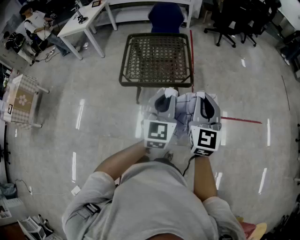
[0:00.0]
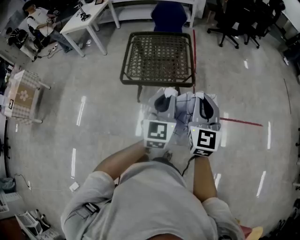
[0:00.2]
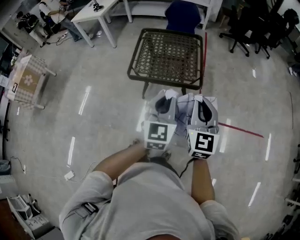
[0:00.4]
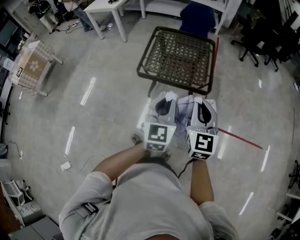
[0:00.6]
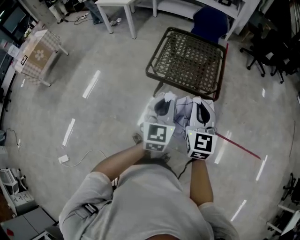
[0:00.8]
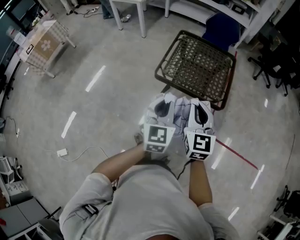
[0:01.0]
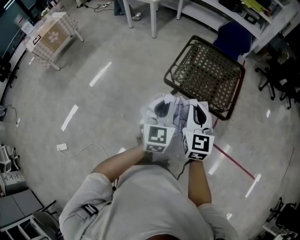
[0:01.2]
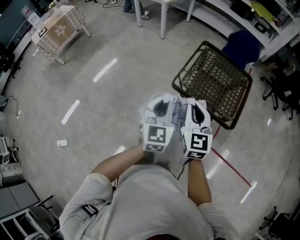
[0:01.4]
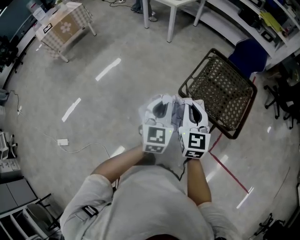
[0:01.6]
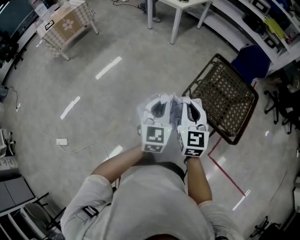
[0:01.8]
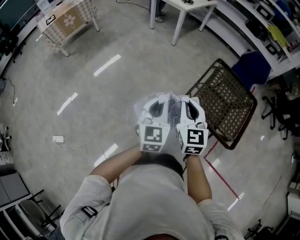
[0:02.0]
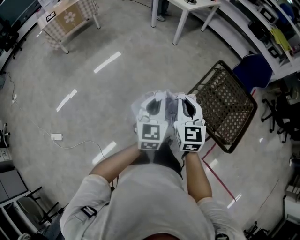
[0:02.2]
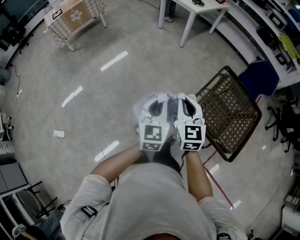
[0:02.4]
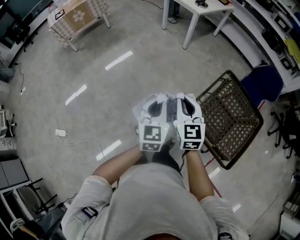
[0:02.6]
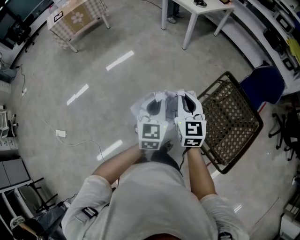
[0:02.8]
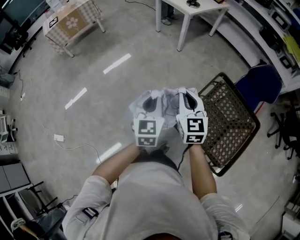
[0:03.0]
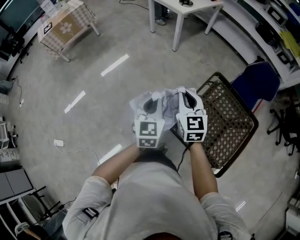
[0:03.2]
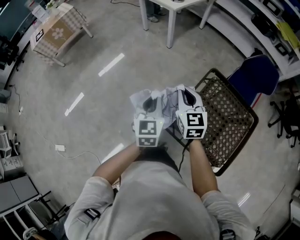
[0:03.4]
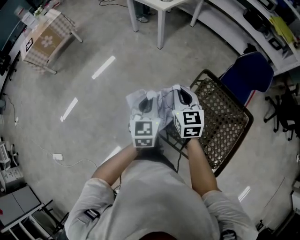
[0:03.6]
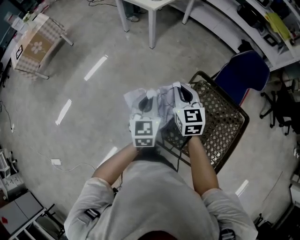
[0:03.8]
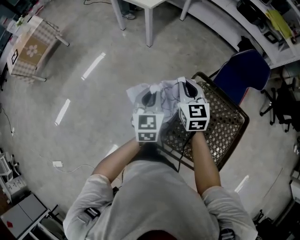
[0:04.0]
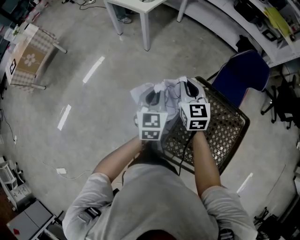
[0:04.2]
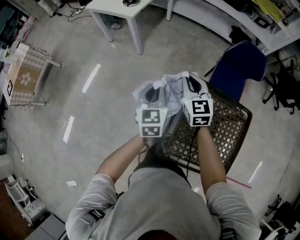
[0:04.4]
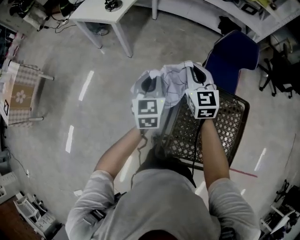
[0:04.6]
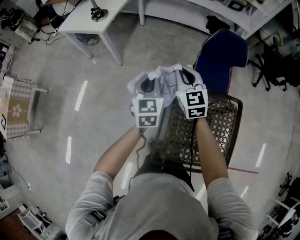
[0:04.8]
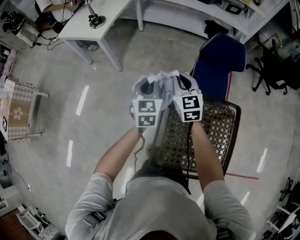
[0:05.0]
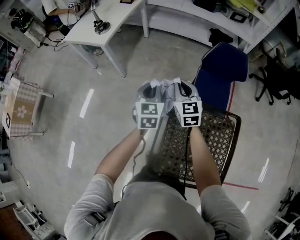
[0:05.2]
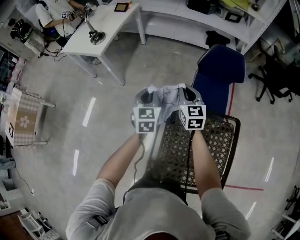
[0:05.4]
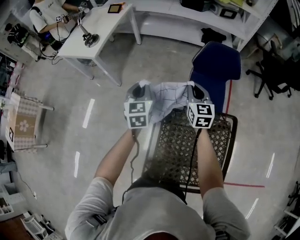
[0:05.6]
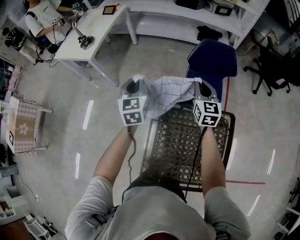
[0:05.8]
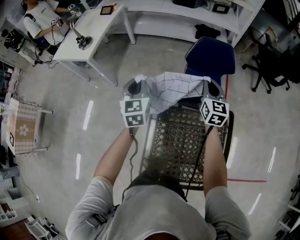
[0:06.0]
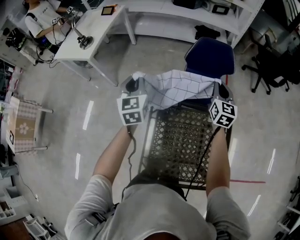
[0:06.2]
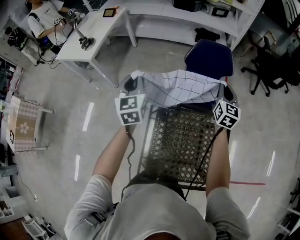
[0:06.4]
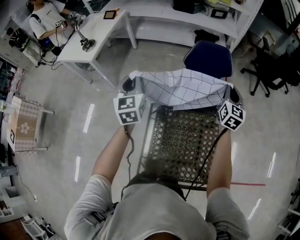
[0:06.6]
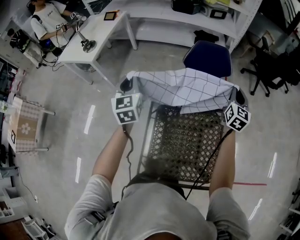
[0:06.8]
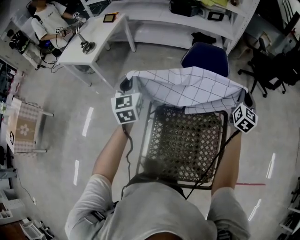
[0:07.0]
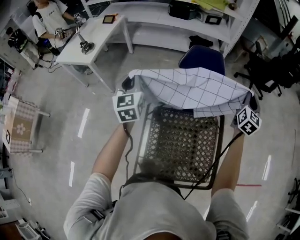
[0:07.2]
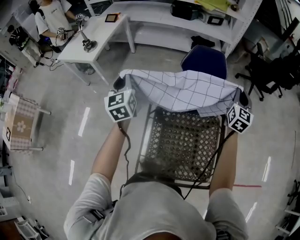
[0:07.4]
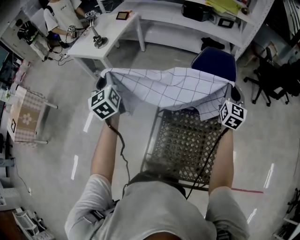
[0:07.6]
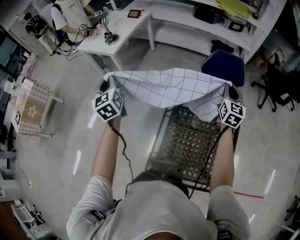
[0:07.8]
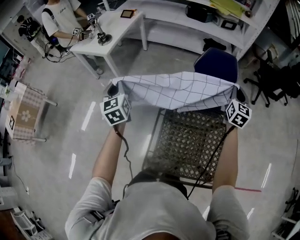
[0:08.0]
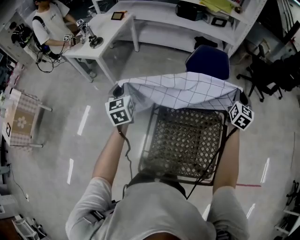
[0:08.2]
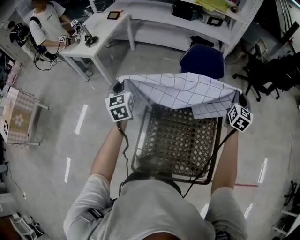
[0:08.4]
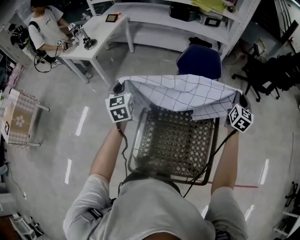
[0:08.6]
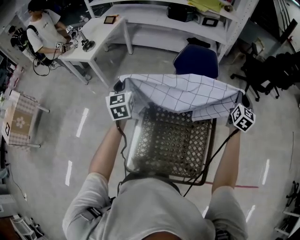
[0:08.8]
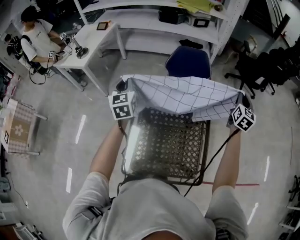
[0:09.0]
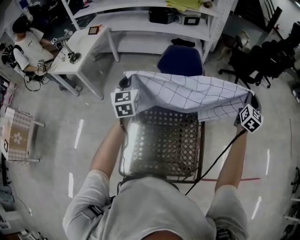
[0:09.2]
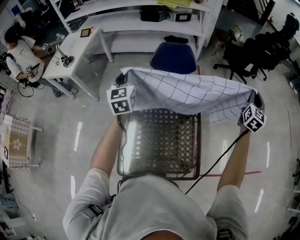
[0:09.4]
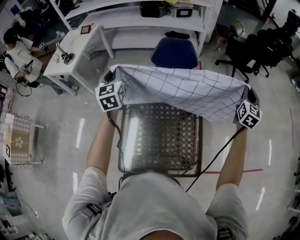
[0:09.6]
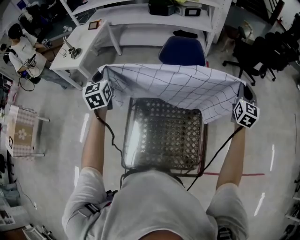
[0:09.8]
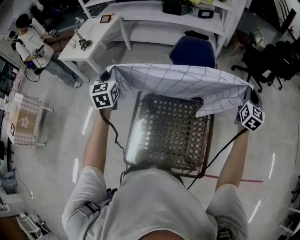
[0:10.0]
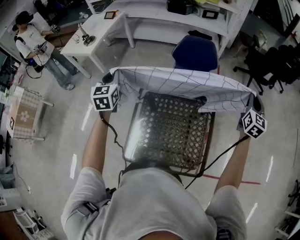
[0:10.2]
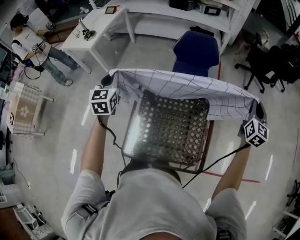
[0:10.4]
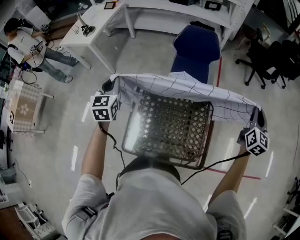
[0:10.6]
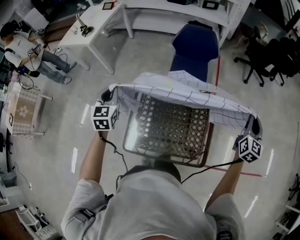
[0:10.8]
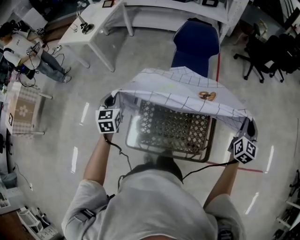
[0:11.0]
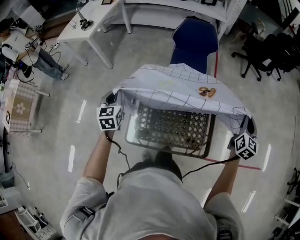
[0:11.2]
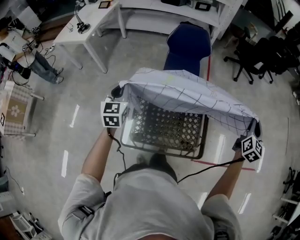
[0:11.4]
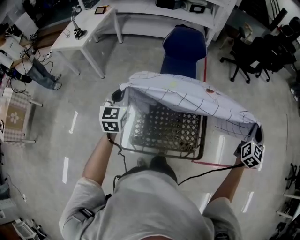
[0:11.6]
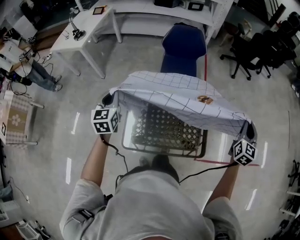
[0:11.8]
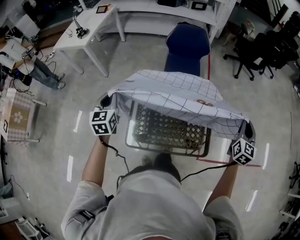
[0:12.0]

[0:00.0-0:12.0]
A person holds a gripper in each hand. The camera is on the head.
0:00.0 to 0:01.6: The left gripper ends up some 40 cm from where it was, and turns by about 40 degrees; the right gripper moves about 40 cm, and changes its angle by some 40 degrees.
0:01.6 to 0:03.0: Both grippers move forward, about 25 cm.
0:03.0 to 0:04.4: The grippers both shift forward and to the right by about 35 cm. The left gripper turns by roughly 20 degrees.
0:04.4 to 0:06.0: The left gripper is displaced to the right and forward by roughly 25 cm, while the right gripper travels to the right by about 40 cm, and changes its angle by about 30 degrees.
0:06.0 to 0:07.6: The right gripper goes about 10 cm upward and backward, and reaches some 25 cm to the right, then returns, while the left gripper shifts about 20 cm to the left, upward and backward, and rotates about 30 degrees.
0:07.6 to 0:09.0: The grippers both shift to the right by approximately 25 cm. The left gripper turns by some 20 degrees.
0:09.0 to 0:10.4: The two grippers go roughly 10 cm backward. The right gripper reaches roughly 15 cm to the right, then returns. The left gripper travels to the right and back again, approximately 10 cm each way.
0:10.4 to 0:12.0: The left gripper moves backward and downward, approximately 15 cm. Meanwhile the right gripper moves backward, some 20 cm.

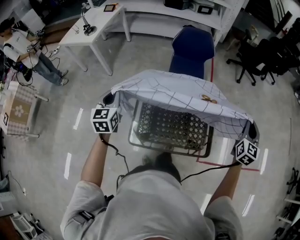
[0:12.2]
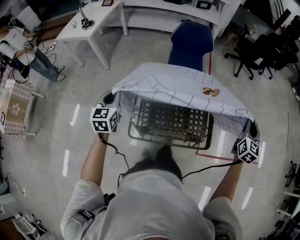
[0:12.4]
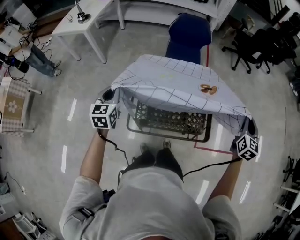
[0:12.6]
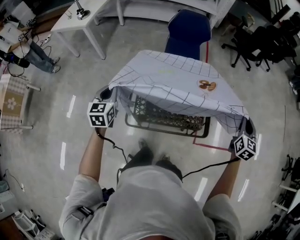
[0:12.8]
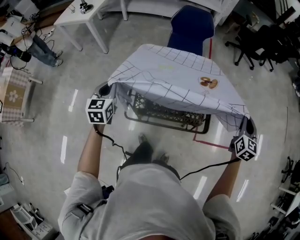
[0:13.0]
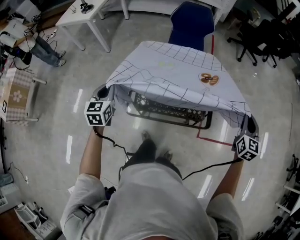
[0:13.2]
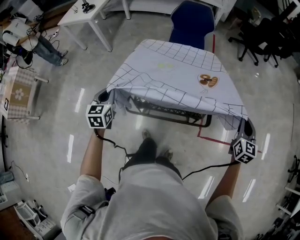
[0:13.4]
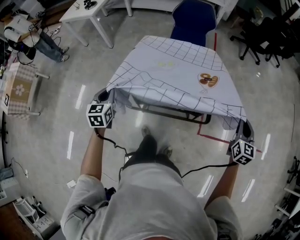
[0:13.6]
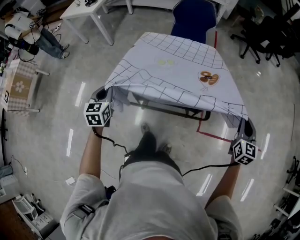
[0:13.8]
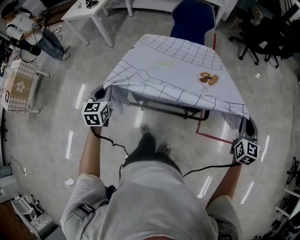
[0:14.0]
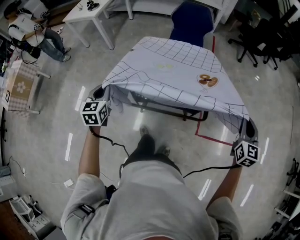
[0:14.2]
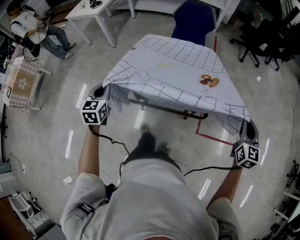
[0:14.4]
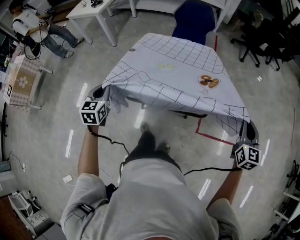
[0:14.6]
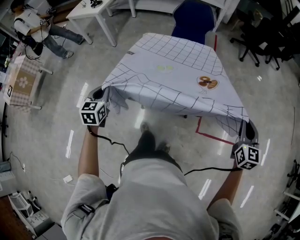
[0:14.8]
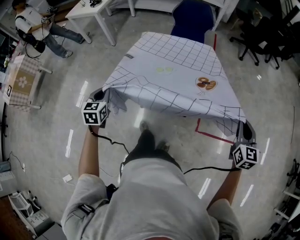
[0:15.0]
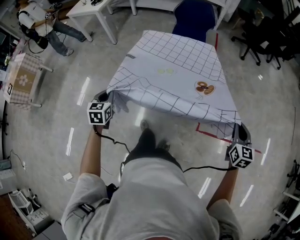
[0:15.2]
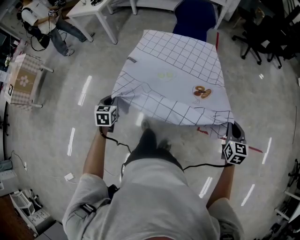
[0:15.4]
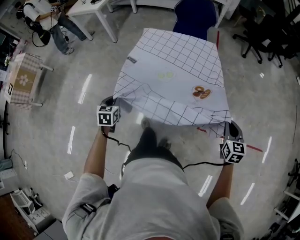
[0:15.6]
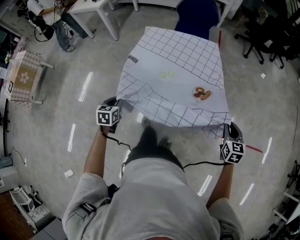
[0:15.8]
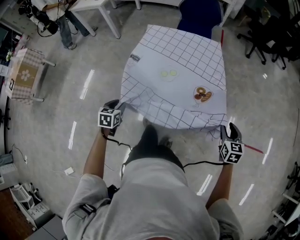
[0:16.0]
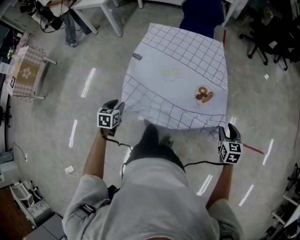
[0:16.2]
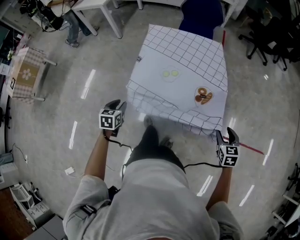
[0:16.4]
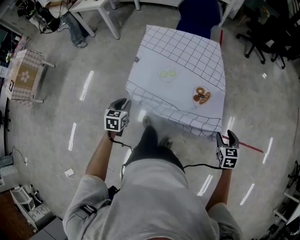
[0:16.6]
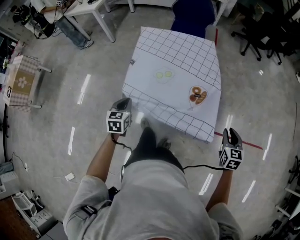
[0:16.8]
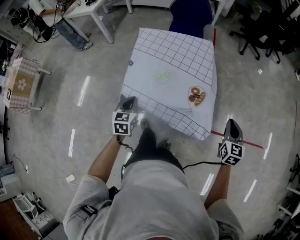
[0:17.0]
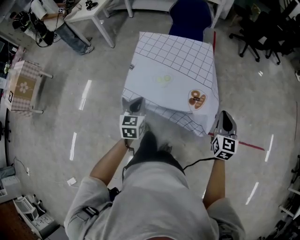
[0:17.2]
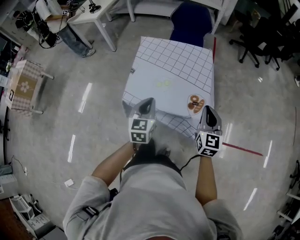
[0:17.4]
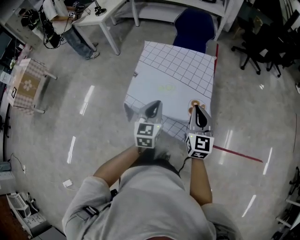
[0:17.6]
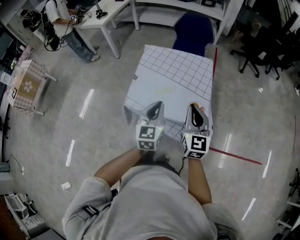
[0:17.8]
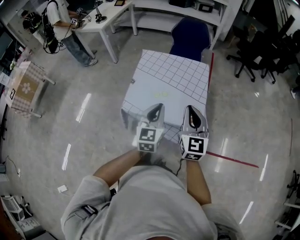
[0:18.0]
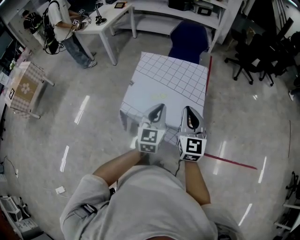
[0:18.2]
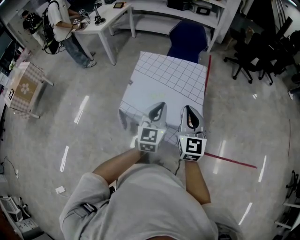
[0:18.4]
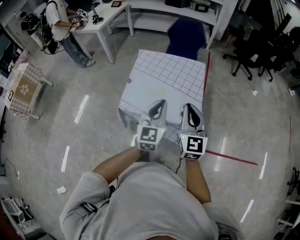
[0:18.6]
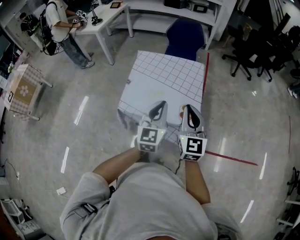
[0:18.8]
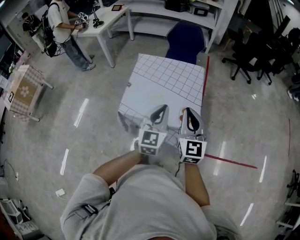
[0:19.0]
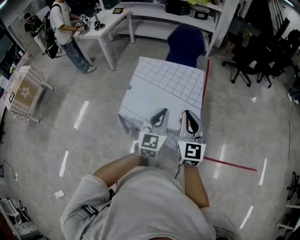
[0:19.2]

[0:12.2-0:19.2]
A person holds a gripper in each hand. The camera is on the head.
0:12.2 to 0:13.6: The two grippers go some 20 cm backward and downward.
0:13.6 to 0:15.0: Both grippers travel together backward, approximately 10 cm.
0:15.0 to 0:16.4: The left gripper moves downward and backward, approximately 15 cm, and opens up. The right gripper moves downward, approximately 20 cm, turns by approximately 30 degrees, and opens up.
0:16.4 to 0:17.8: The right gripper goes some 25 cm to the left, upward and forward, angles its fingers upward, by approximately 40 degrees, and closes. Meanwhile the left gripper travels to the right and upward by some 30 cm, angles its fingers upward, by some 40 degrees, and closes up.
0:17.8 to 0:19.2: The right gripper ends up approximately 5 cm from where it was, while the left gripper travels to the right by approximately 5 cm.

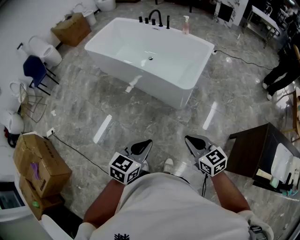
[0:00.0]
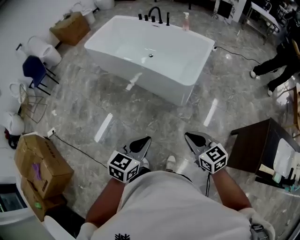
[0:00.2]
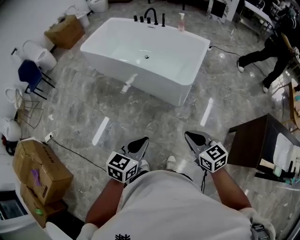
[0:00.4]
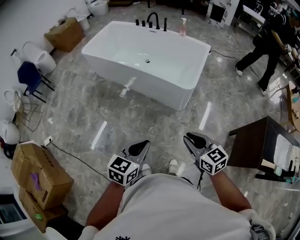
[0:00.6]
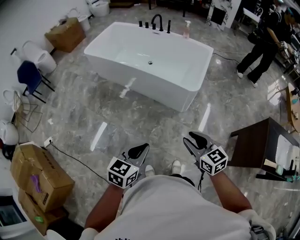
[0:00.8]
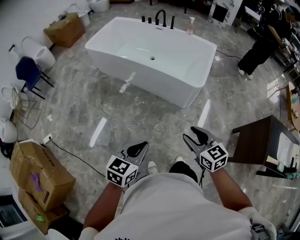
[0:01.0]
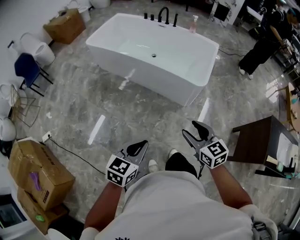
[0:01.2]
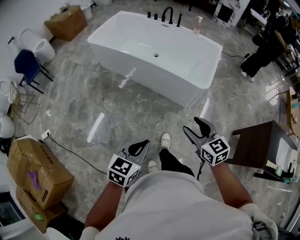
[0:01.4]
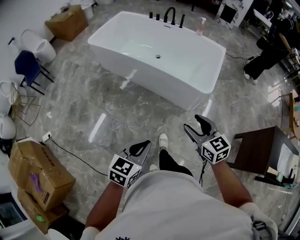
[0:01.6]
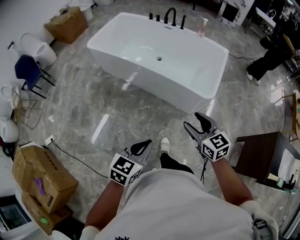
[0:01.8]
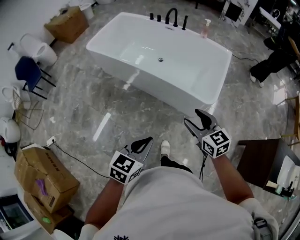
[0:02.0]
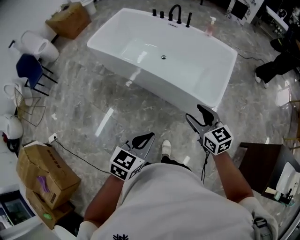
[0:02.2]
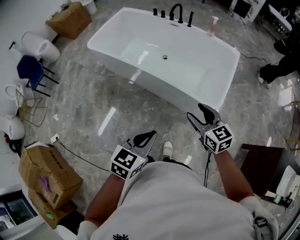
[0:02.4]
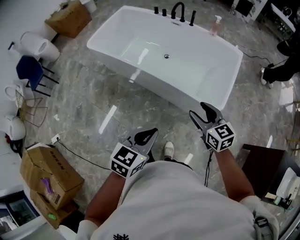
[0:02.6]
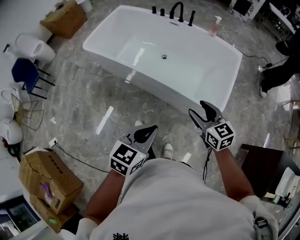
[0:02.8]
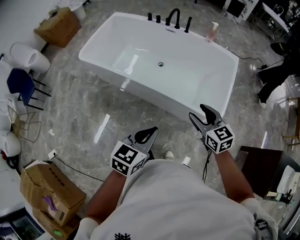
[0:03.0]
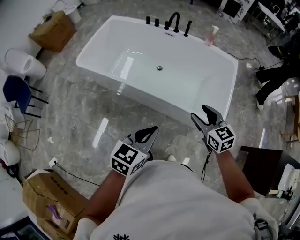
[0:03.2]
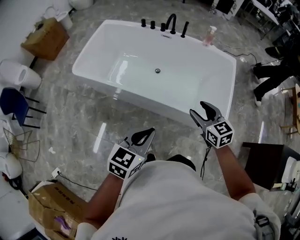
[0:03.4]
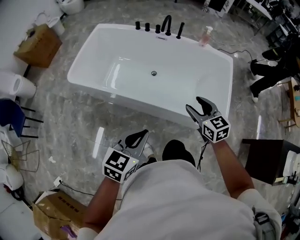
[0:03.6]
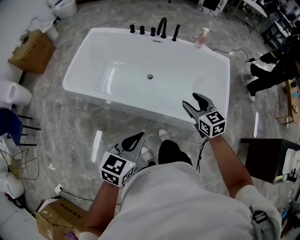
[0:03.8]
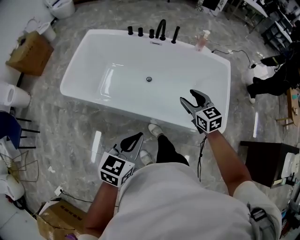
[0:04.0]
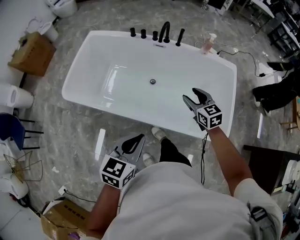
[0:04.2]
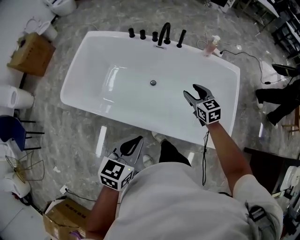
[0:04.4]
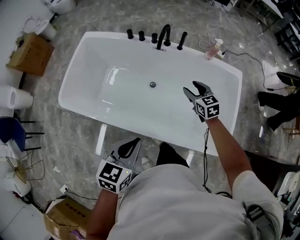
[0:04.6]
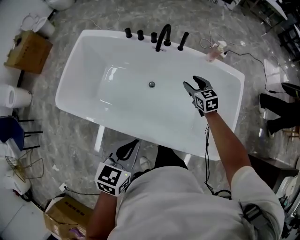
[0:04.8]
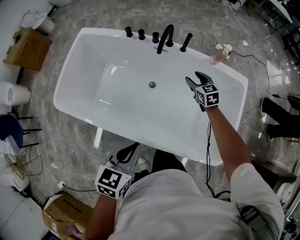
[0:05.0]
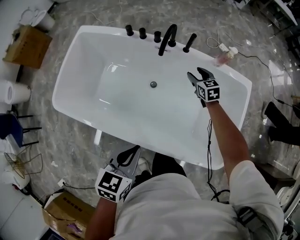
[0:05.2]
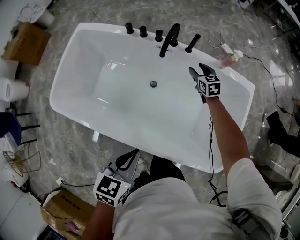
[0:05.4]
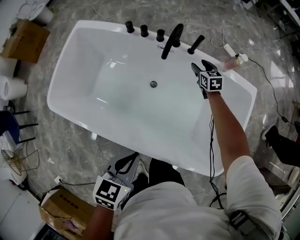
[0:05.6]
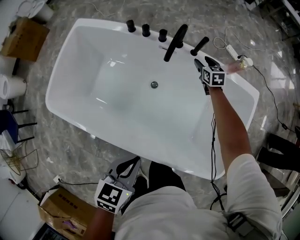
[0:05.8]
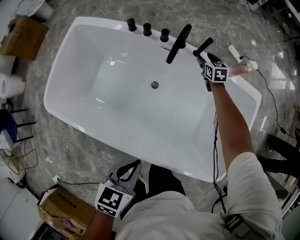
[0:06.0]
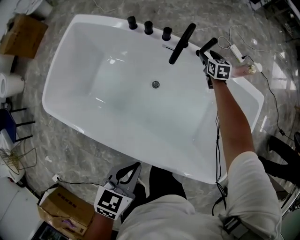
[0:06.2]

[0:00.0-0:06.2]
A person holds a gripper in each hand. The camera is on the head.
0:00.0 to 0:01.6: The right gripper goes some 25 cm to the left and forward, and opens. Meanwhile the left gripper is displaced to the left by about 25 cm.
0:01.6 to 0:03.2: The two grippers travel together, forward, roughly 40 cm.
0:03.2 to 0:04.6: Both grippers move forward, about 40 cm.
0:04.6 to 0:06.2: The right gripper goes roughly 40 cm forward and downward. The left gripper moves forward and downward, some 20 cm.
